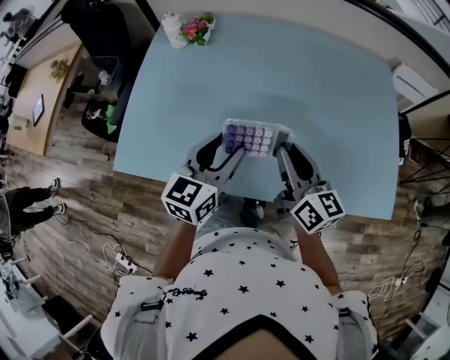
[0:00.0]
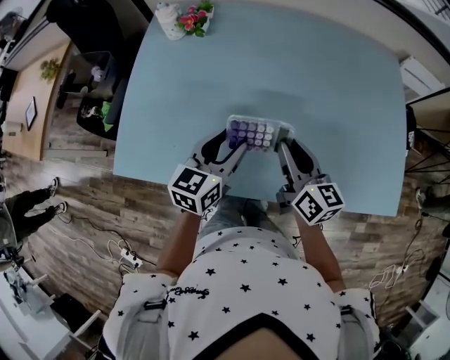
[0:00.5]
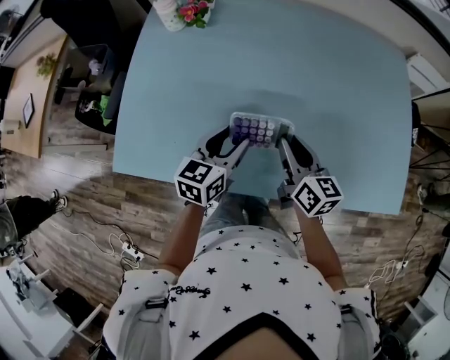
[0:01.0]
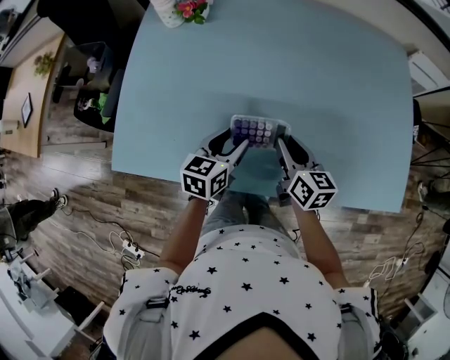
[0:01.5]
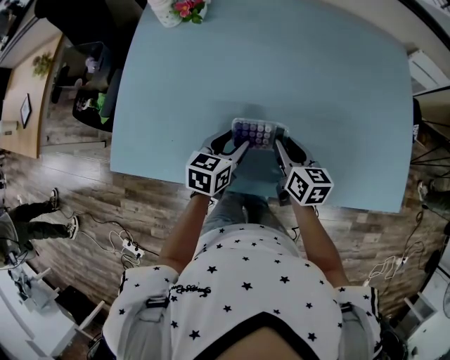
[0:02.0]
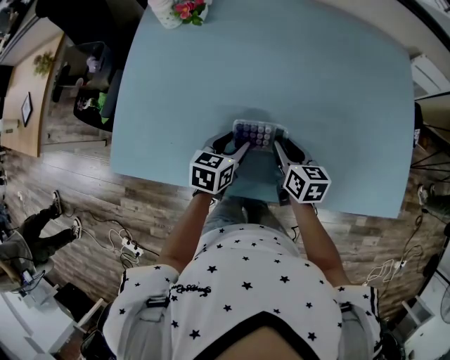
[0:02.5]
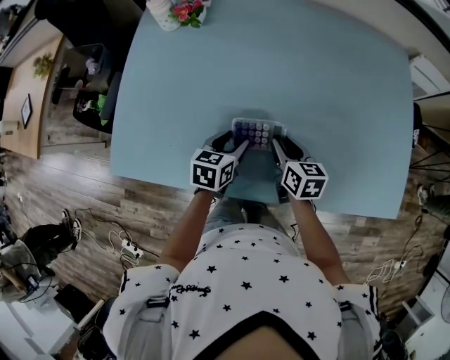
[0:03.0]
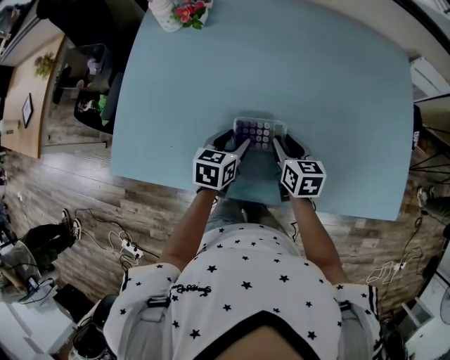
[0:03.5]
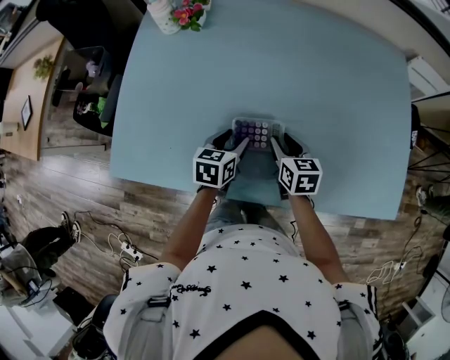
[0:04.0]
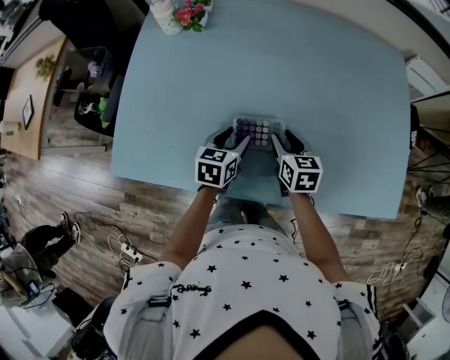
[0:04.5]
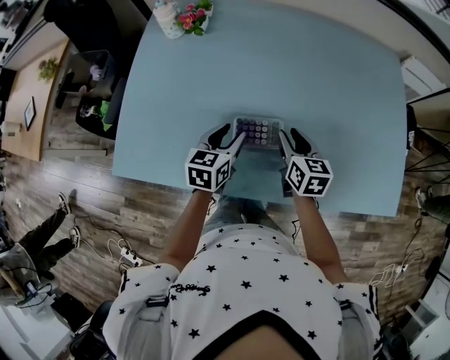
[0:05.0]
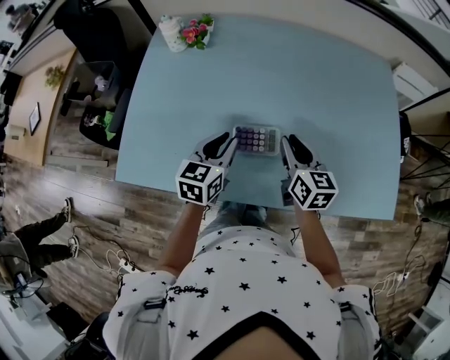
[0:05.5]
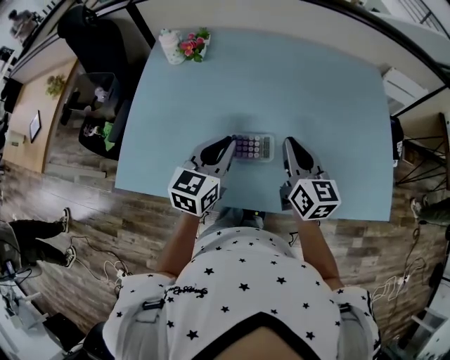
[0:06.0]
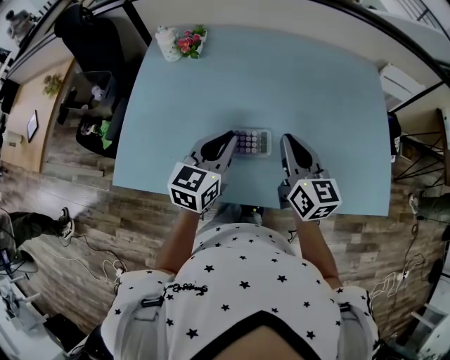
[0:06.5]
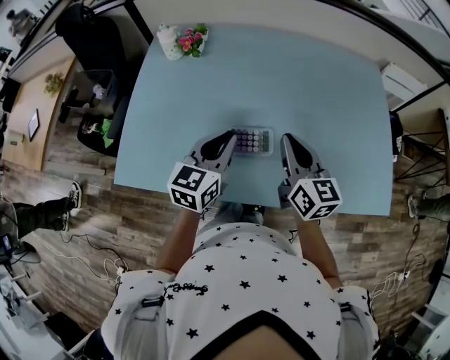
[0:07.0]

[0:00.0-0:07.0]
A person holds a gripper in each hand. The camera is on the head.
0:00.0 to 0:02.0: Both grippers travel together downward, approximately 15 cm. The right gripper swivels approximately 30 degrees. Meanwhile the left gripper changes its angle by roughly 20 degrees.
0:02.0 to 0:03.5: The grippers stay close to where they were, moving slightly.
0:03.5 to 0:05.0: The left gripper goes some 5 cm upward, while the right gripper ends up some 5 cm from where it was.
0:05.0 to 0:07.0: Both grippers move upward, some 15 cm. The right gripper rotates some 20 degrees, and closes, while the left gripper closes up.

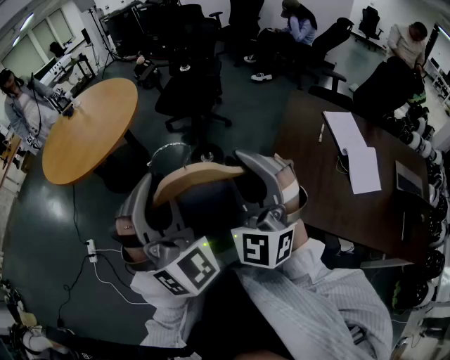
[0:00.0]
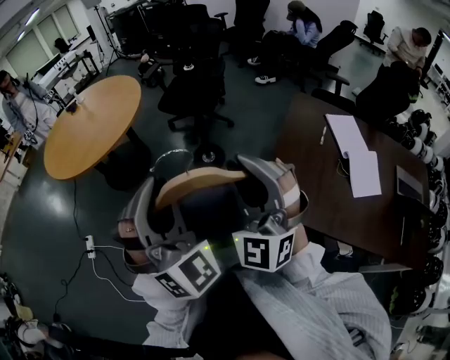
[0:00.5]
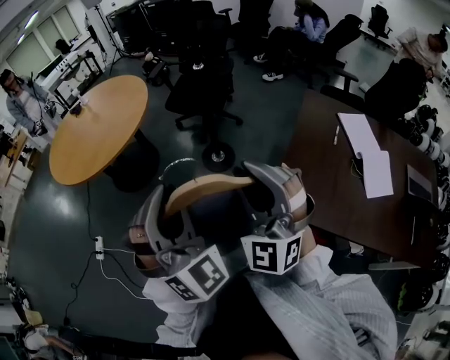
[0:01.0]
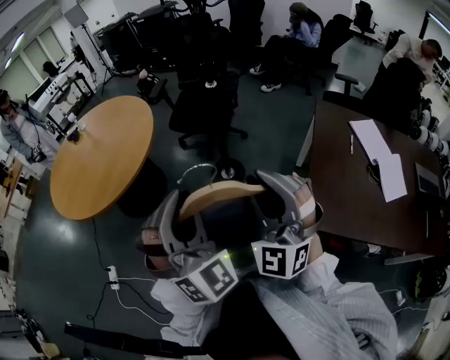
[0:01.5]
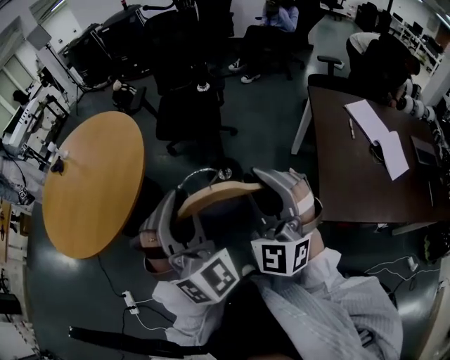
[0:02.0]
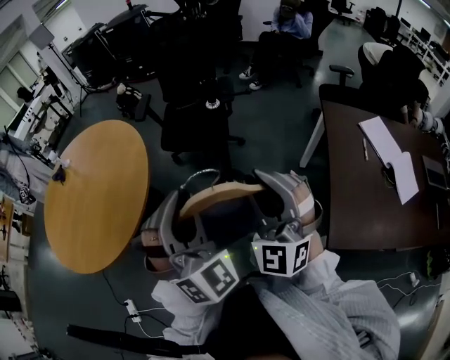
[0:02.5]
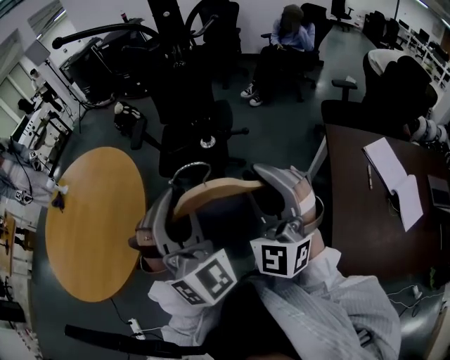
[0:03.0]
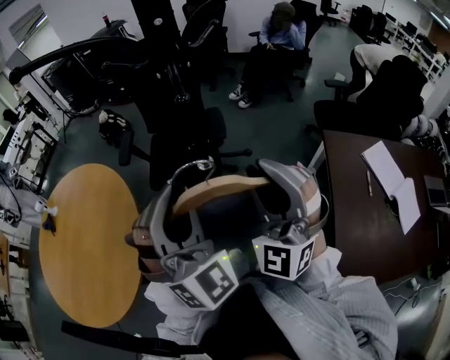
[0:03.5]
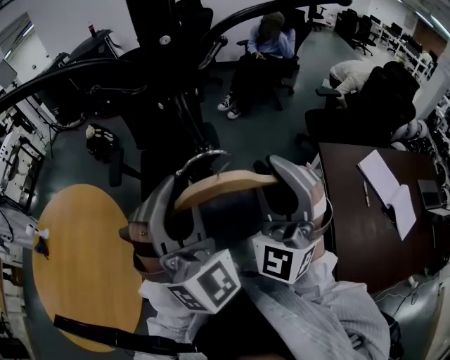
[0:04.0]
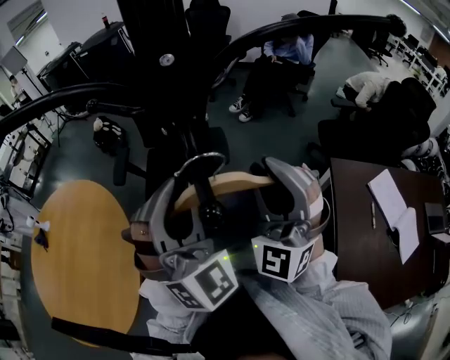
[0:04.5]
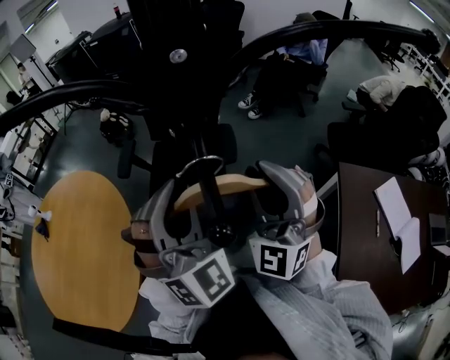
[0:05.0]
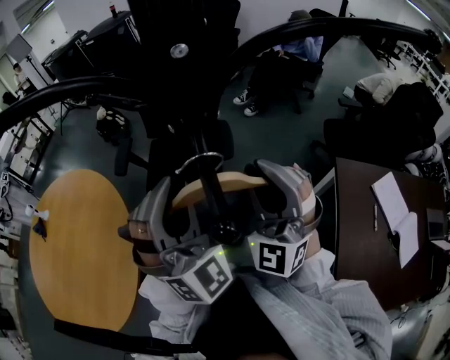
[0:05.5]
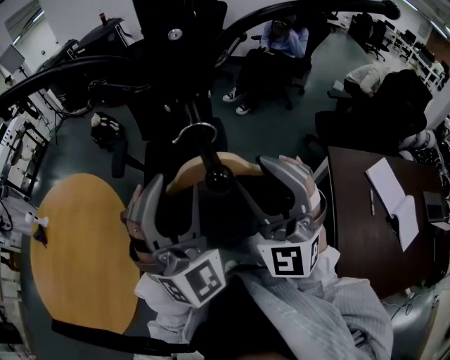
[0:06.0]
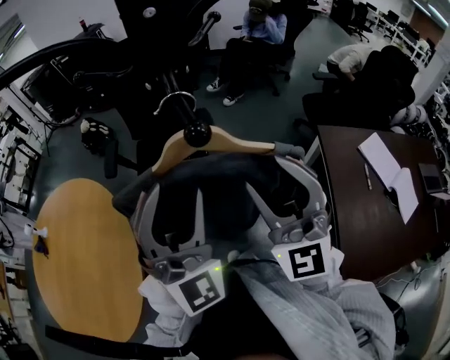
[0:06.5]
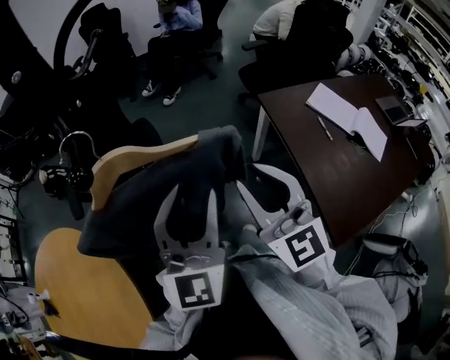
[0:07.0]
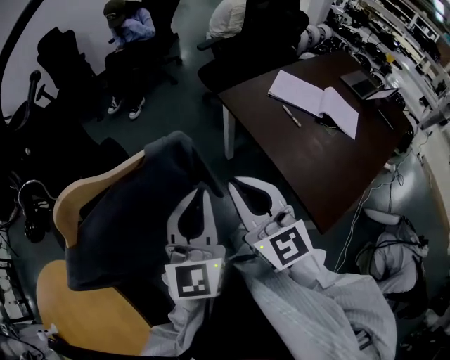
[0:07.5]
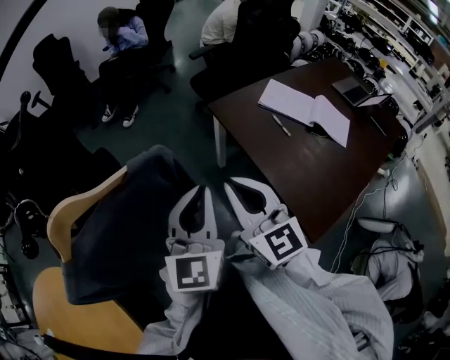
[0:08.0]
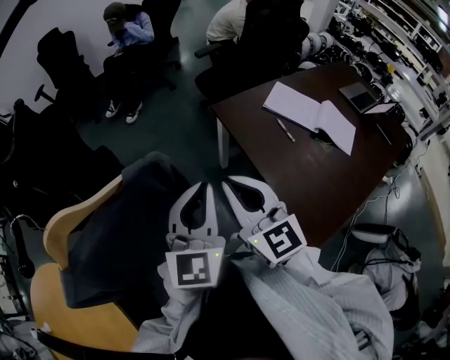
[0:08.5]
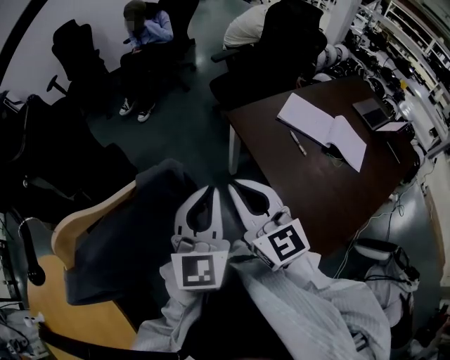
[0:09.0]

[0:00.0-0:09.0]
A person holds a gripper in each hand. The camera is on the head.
0:00.0 to 0:02.0: Both grippers move forward and to the left, some 35 cm.
0:02.0 to 0:04.5: The two grippers travel together, forward, some 50 cm.
0:04.5 to 0:07.0: The right gripper moves roughly 20 cm, and rolls clockwise, seen from behind, by some 50 degrees, while the left gripper shifts by approximately 20 cm, changes its angle by roughly 60 degrees, and opens up.
0:07.0 to 0:09.0: The two grippers go roughly 15 cm to the right and forward. The right gripper closes its fingers. Meanwhile the left gripper closes its fingers.

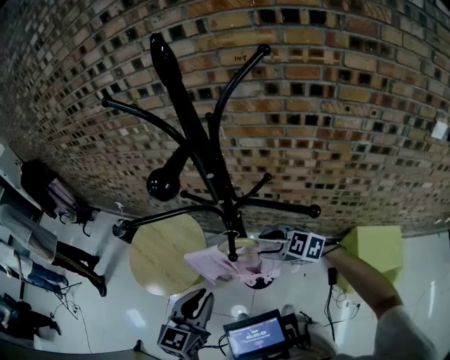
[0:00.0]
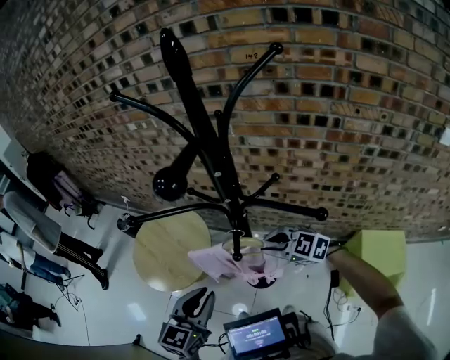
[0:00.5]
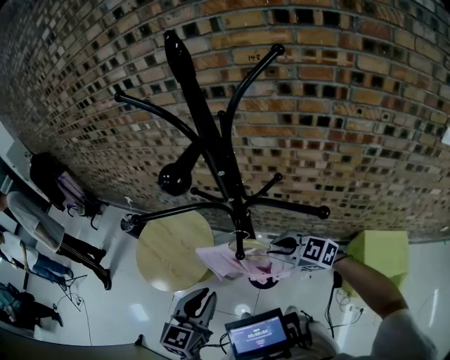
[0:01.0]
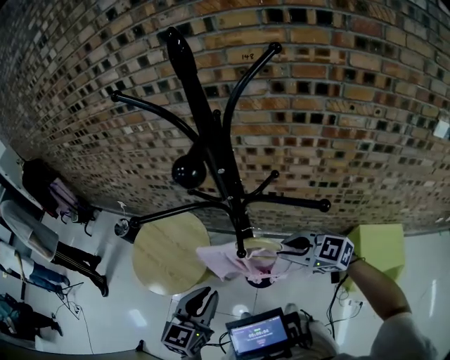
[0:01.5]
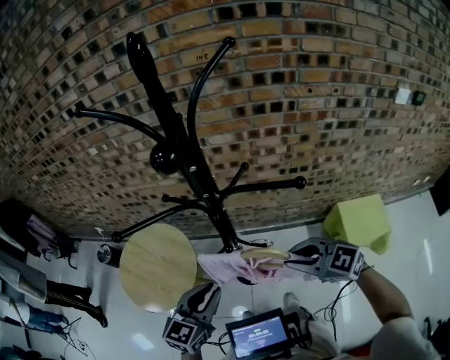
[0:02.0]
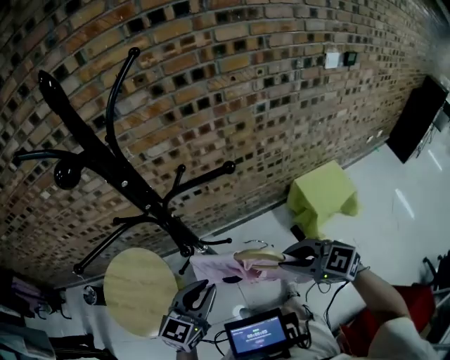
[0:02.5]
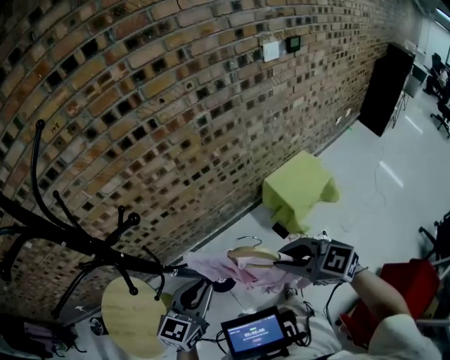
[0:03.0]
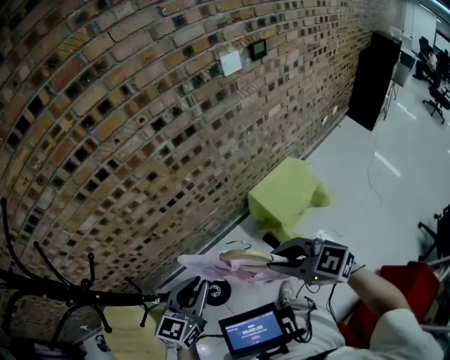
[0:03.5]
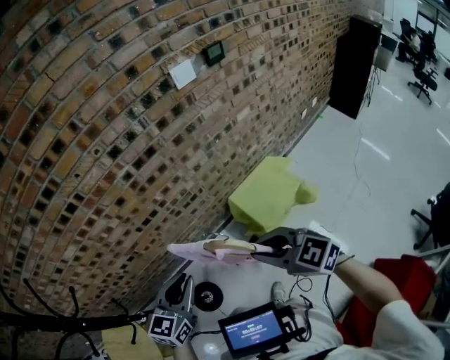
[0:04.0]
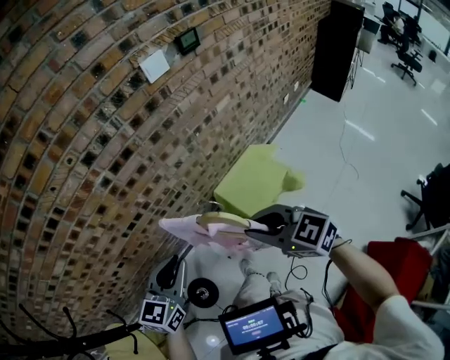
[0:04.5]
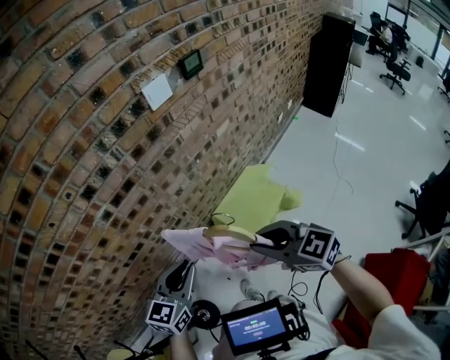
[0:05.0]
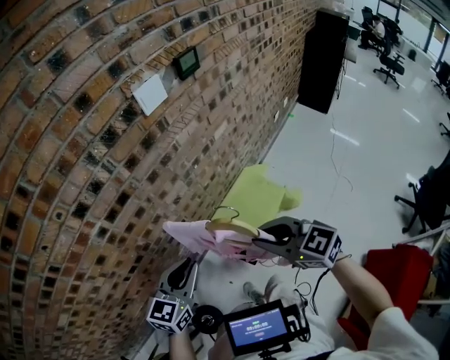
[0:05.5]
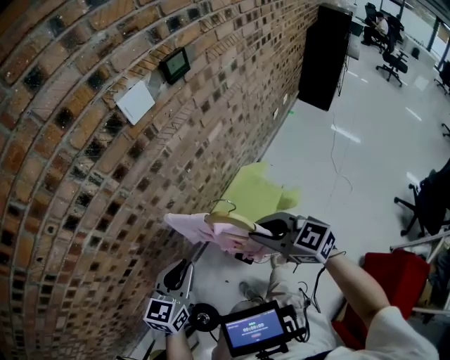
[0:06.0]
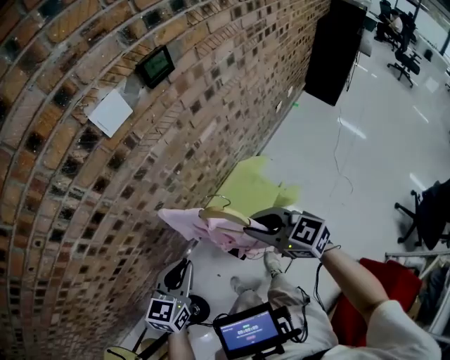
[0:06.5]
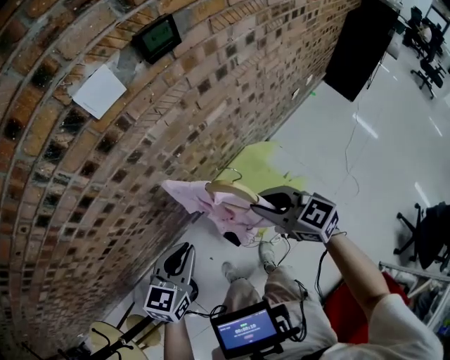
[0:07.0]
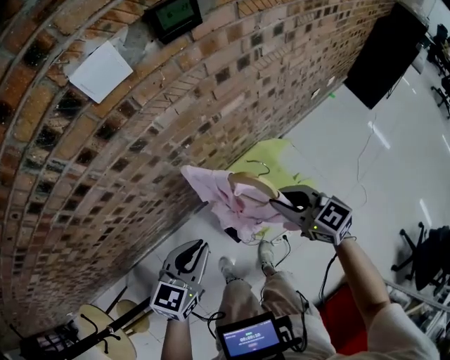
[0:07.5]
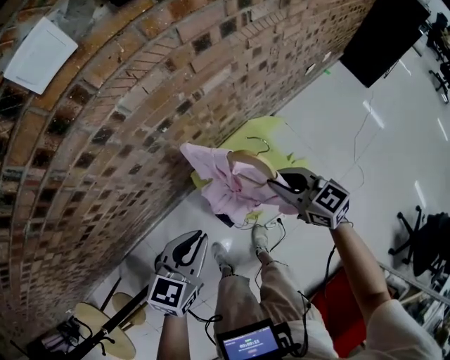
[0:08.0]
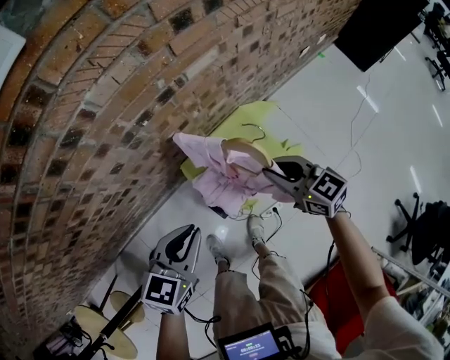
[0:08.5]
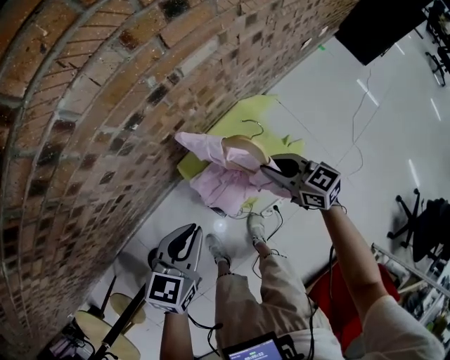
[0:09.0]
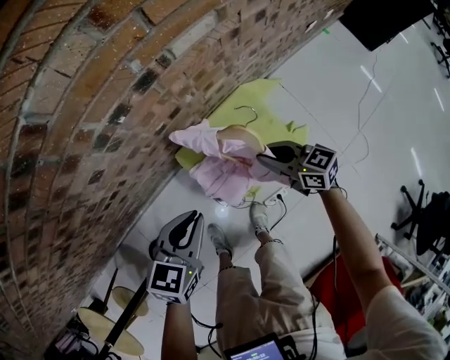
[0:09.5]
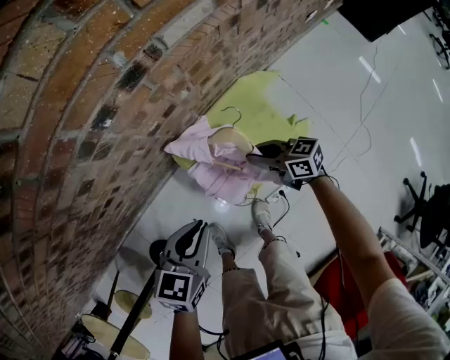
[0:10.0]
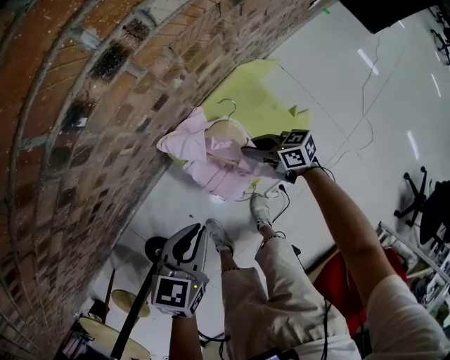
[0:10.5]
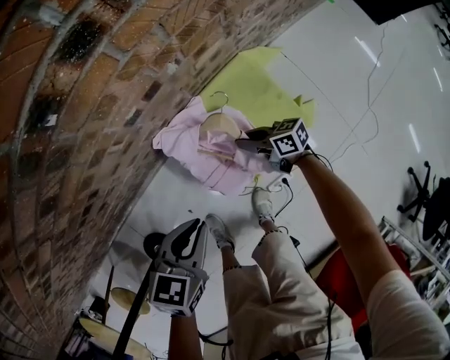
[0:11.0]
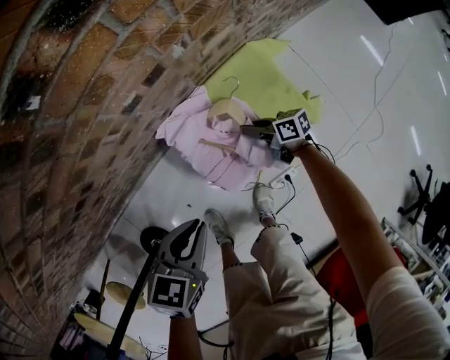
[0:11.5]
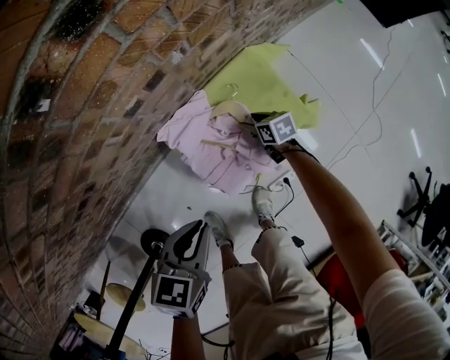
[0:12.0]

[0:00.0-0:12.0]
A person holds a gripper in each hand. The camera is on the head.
0:00.0 to 0:02.0: The right gripper travels backward and upward by some 15 cm, and closes its fingers.
0:02.0 to 0:04.0: The two grippers travel together, roughly 60 cm. The right gripper turns by roughly 40 degrees; the left gripper swivels about 30 degrees.
0:04.0 to 0:06.0: Both grippers travel together forward and to the right, some 30 cm. The right gripper changes its angle by approximately 20 degrees.
0:06.0 to 0:08.0: The left gripper heads to the right, downward and forward, covering approximately 30 cm, while the right gripper moves downward, to the right and forward, approximately 35 cm.
0:08.0 to 0:10.0: The grippers both shift downward by some 30 cm. The right gripper swivels roughly 30 degrees.
0:10.0 to 0:12.0: The left gripper is displaced downward by roughly 15 cm; the right gripper moves downward, approximately 30 cm, angles its fingers downward, by roughly 30 degrees, and opens.
